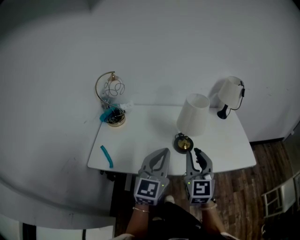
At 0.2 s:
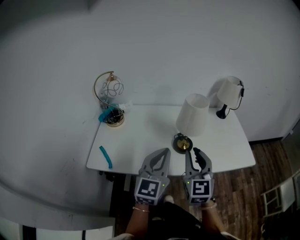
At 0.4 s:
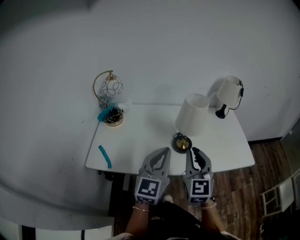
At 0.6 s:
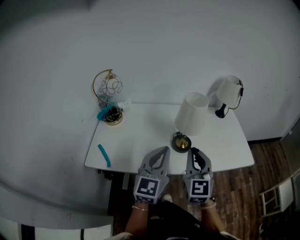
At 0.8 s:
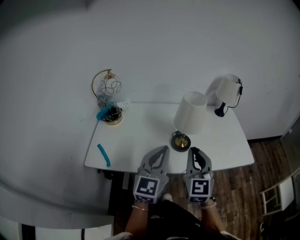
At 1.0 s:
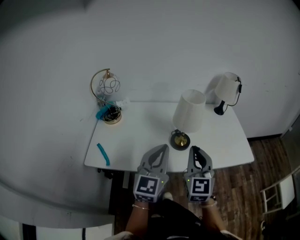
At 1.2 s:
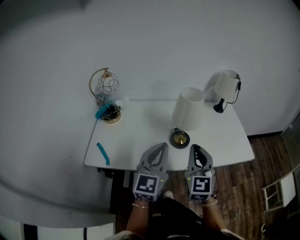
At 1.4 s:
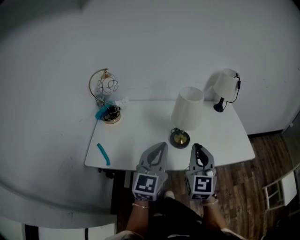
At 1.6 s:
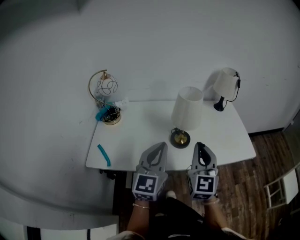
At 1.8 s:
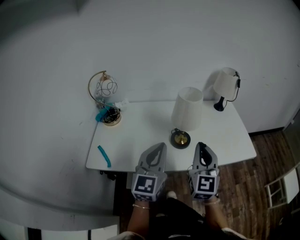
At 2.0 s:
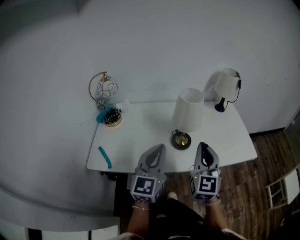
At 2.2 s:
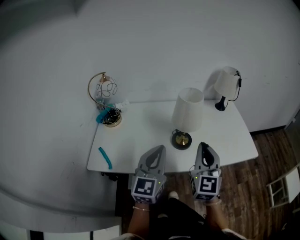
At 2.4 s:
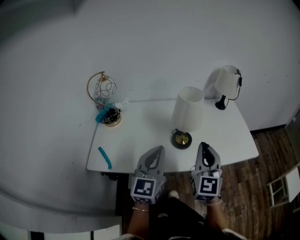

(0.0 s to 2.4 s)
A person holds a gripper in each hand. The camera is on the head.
0.0 s - 1.2 s: The right gripper closes.
1.2 s - 2.4 s: The grippers make only small movements.

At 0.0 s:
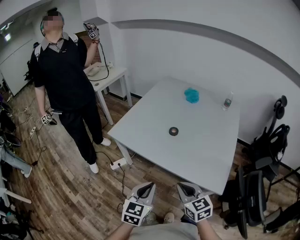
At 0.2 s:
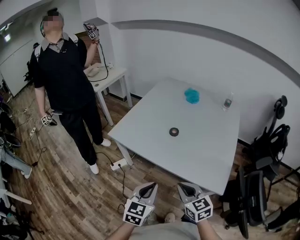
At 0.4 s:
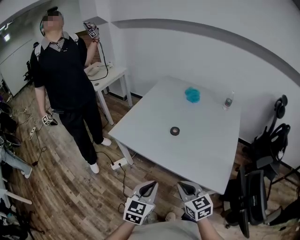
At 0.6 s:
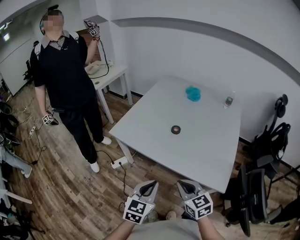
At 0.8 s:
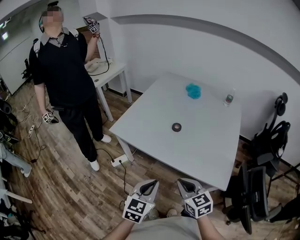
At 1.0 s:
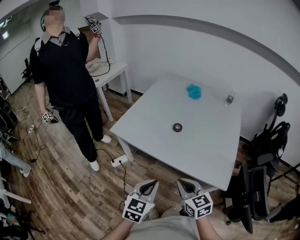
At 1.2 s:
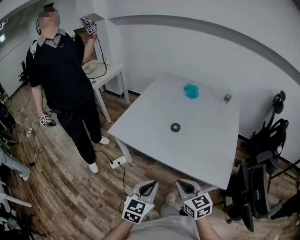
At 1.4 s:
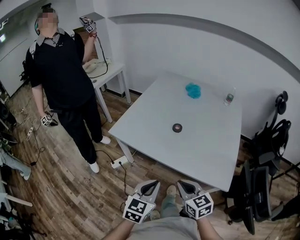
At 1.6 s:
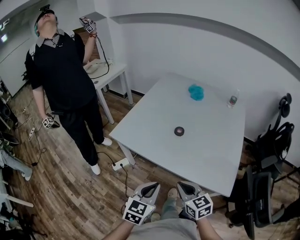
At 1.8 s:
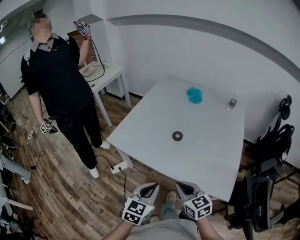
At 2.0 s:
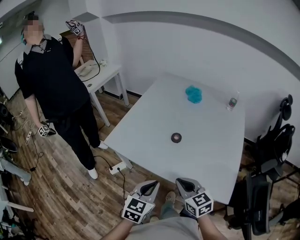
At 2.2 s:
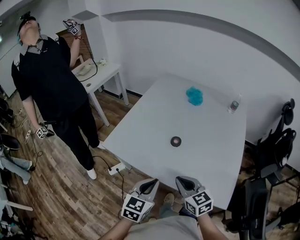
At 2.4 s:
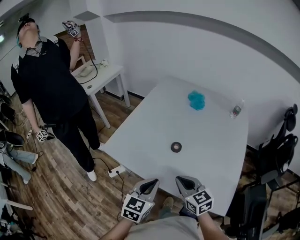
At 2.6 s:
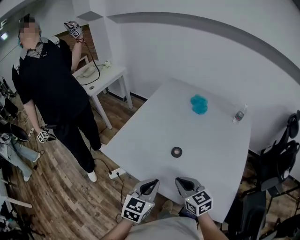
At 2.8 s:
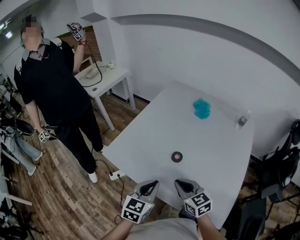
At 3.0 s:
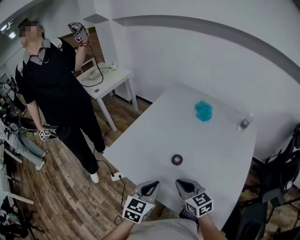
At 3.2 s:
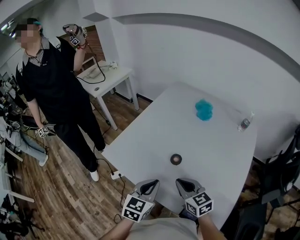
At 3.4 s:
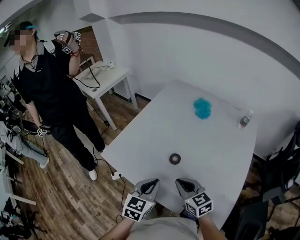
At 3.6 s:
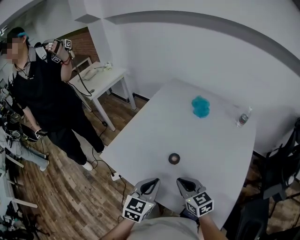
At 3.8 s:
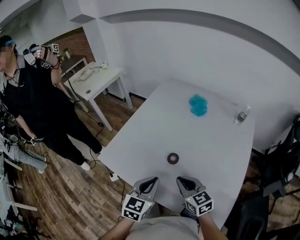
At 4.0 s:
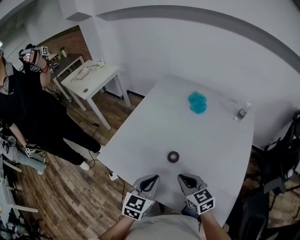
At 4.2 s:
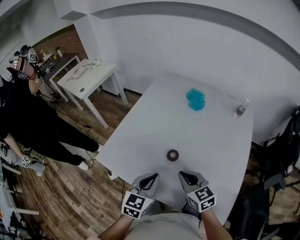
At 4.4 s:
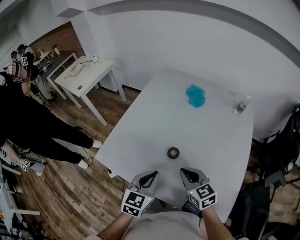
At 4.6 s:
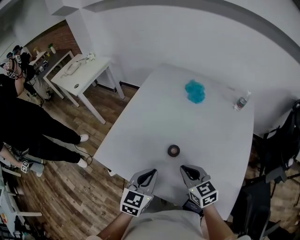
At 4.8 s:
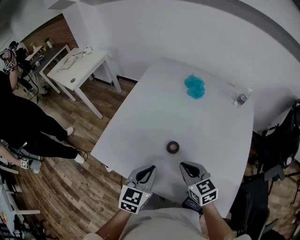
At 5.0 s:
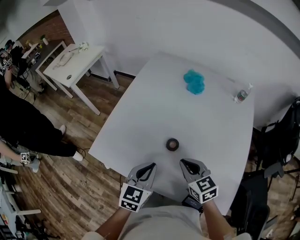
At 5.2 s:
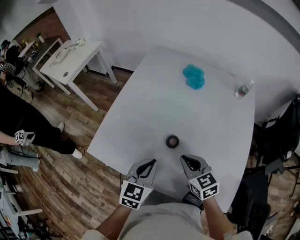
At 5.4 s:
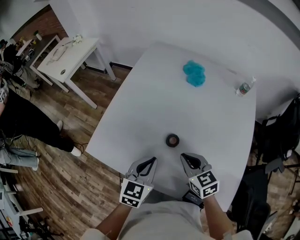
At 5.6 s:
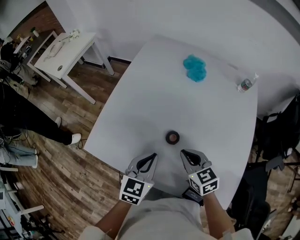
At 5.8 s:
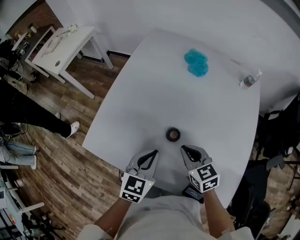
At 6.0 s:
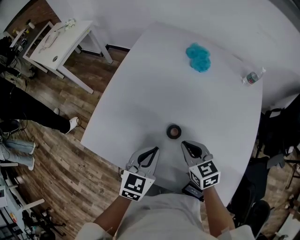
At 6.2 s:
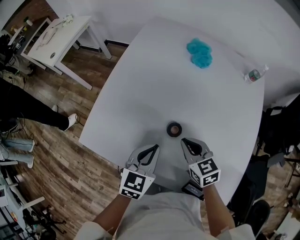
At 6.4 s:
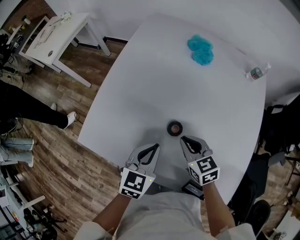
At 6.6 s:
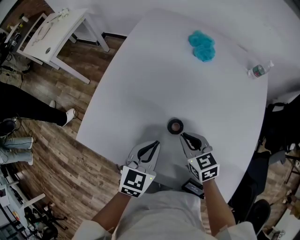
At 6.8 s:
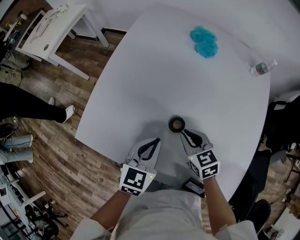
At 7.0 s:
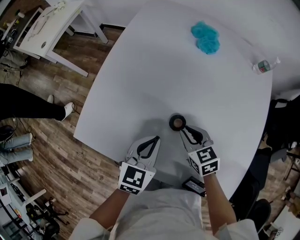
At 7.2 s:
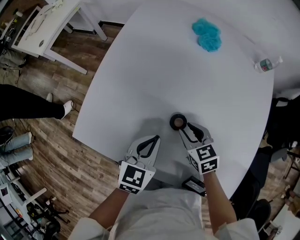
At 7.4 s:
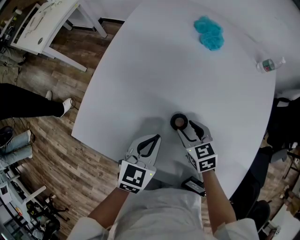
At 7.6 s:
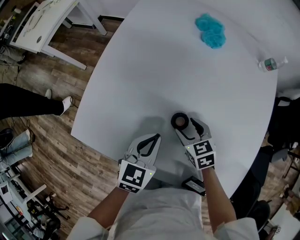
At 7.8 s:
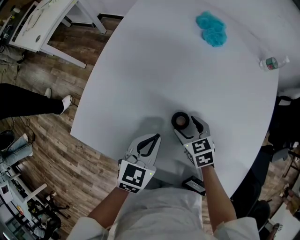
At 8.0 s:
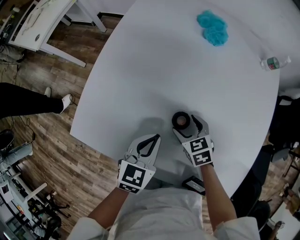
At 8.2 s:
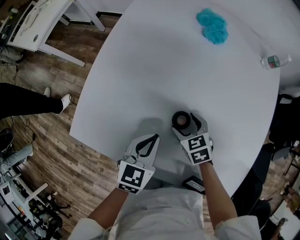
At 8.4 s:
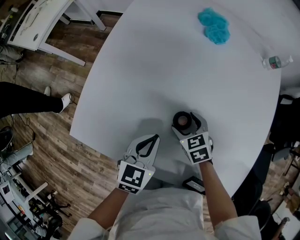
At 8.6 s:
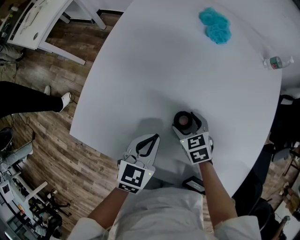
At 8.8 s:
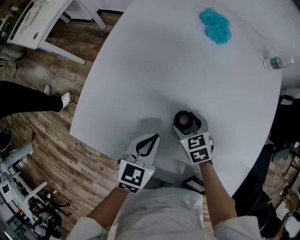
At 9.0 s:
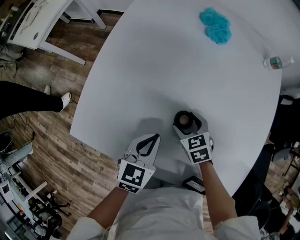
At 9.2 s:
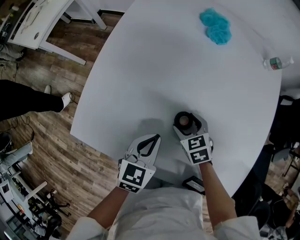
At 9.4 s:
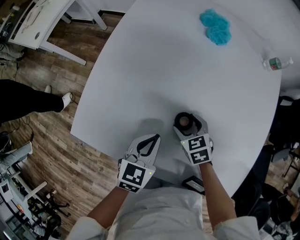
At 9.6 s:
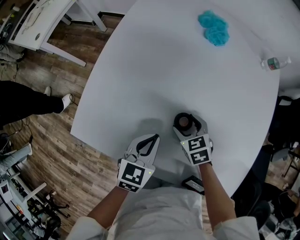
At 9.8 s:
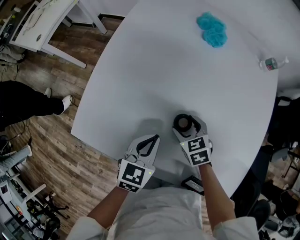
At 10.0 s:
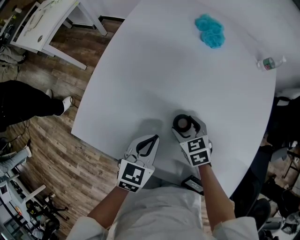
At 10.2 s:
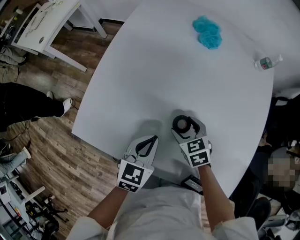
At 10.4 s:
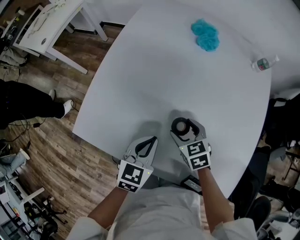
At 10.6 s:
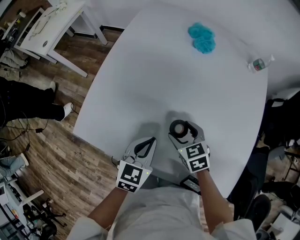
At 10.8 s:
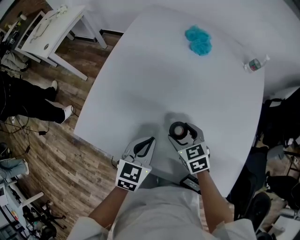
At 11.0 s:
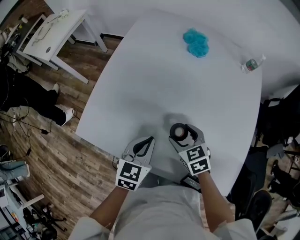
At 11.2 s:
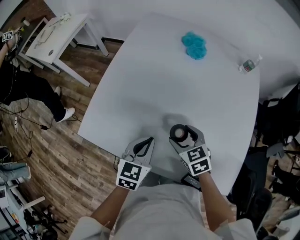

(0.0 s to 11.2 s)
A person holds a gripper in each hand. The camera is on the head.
0.0 s - 1.6 s: The right gripper ends up some 5 cm from where it was.
1.6 s - 3.2 s: Both grippers move forward, about 20 cm.
3.2 s - 4.8 s: Both grippers travel together forward, roughly 5 cm.
4.8 s - 6.4 s: The right gripper travels downward and forward by roughly 10 cm. The left gripper heads forward and downward, covering approximately 10 cm.
6.4 s - 8.0 s: The right gripper goes about 10 cm downward, and opens up; the left gripper heads downward, covering about 5 cm.
8.0 s - 9.6 s: The grippers move only a little.
9.6 s - 11.2 s: The left gripper is displaced upward and backward by approximately 10 cm, while the right gripper moves upward and backward, some 15 cm.

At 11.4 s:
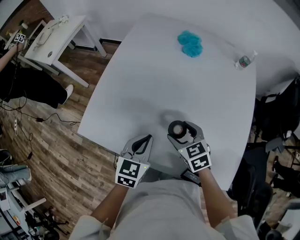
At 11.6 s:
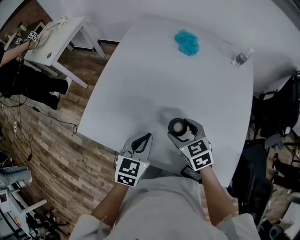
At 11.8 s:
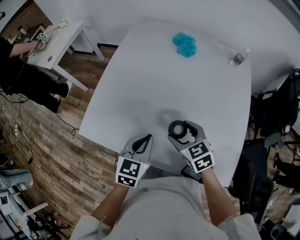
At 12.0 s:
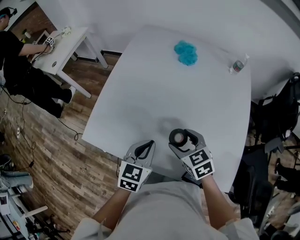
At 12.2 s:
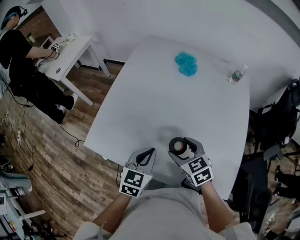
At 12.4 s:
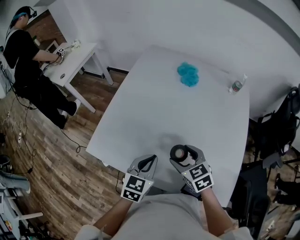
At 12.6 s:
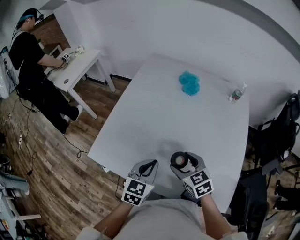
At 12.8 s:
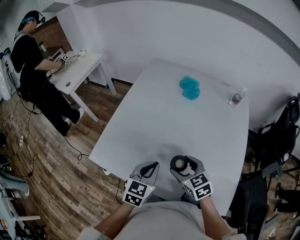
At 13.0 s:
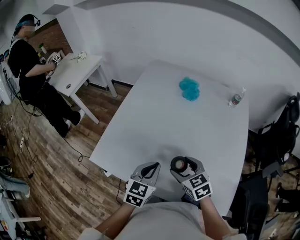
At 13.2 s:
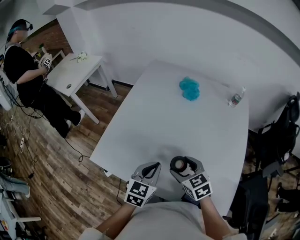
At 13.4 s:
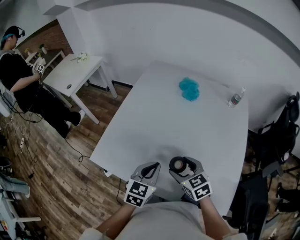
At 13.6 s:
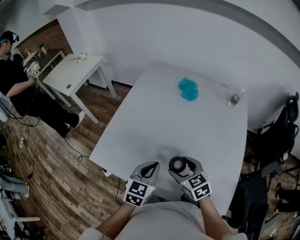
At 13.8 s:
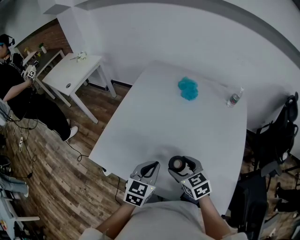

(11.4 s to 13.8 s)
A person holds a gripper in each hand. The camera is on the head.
11.4 s - 12.6 s: The right gripper is displaced upward by roughly 5 cm.
12.6 s - 13.8 s: The grippers move only a little.

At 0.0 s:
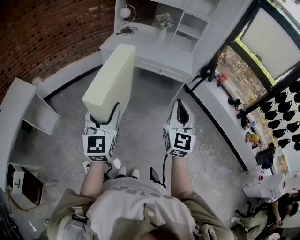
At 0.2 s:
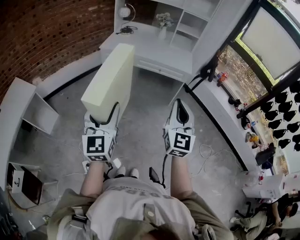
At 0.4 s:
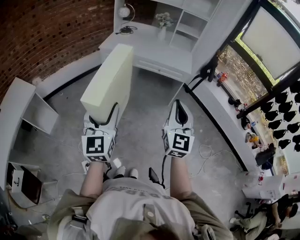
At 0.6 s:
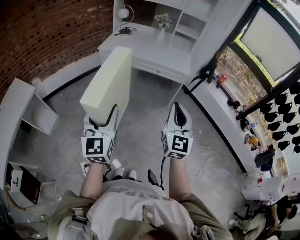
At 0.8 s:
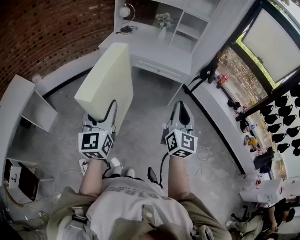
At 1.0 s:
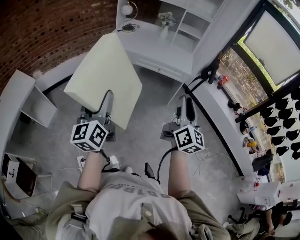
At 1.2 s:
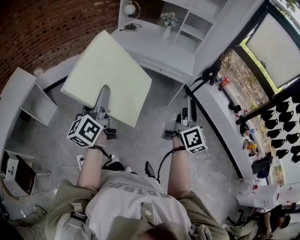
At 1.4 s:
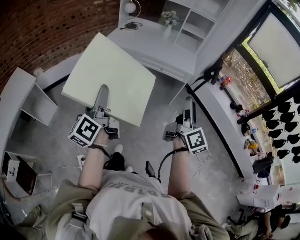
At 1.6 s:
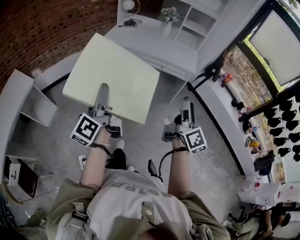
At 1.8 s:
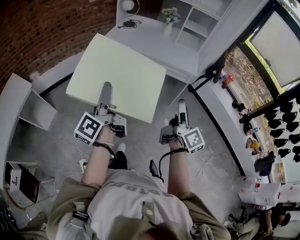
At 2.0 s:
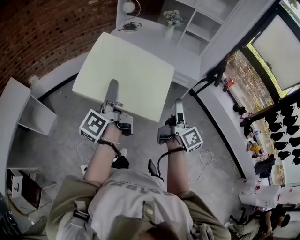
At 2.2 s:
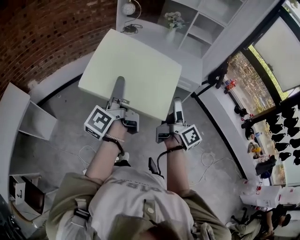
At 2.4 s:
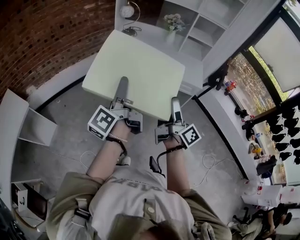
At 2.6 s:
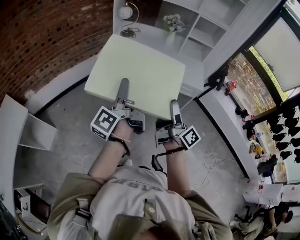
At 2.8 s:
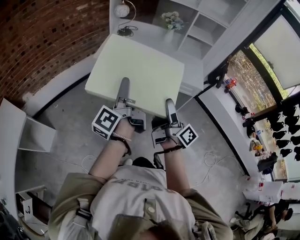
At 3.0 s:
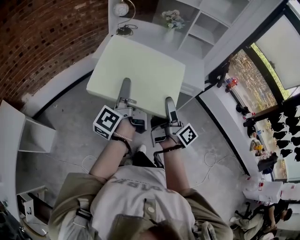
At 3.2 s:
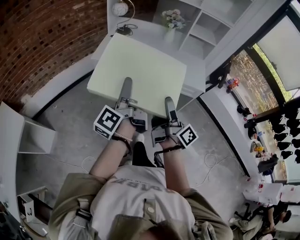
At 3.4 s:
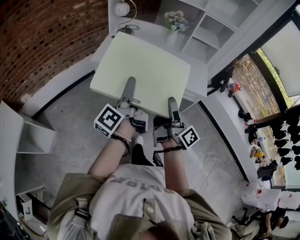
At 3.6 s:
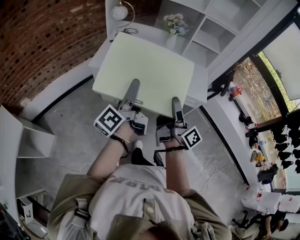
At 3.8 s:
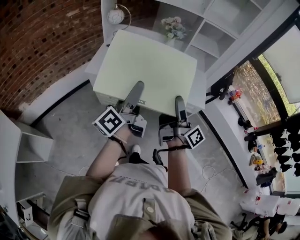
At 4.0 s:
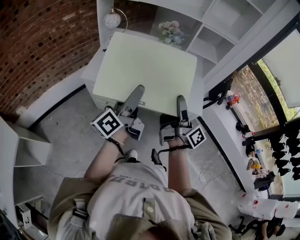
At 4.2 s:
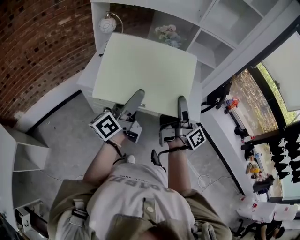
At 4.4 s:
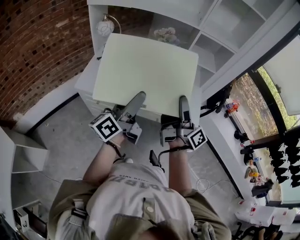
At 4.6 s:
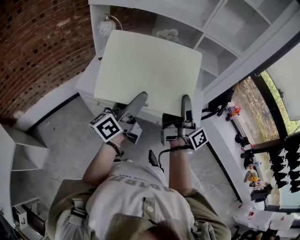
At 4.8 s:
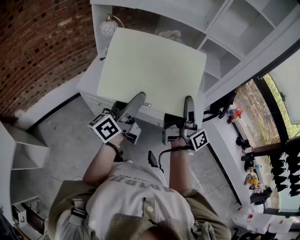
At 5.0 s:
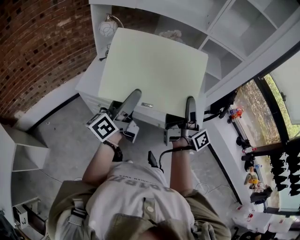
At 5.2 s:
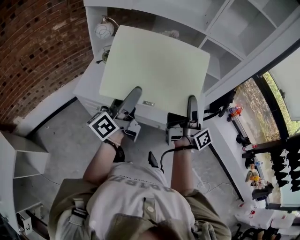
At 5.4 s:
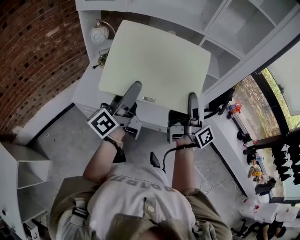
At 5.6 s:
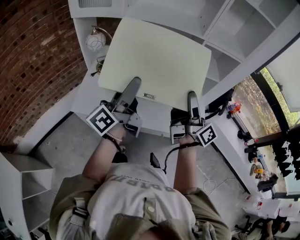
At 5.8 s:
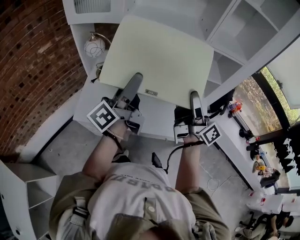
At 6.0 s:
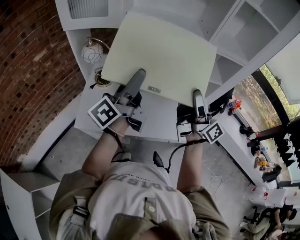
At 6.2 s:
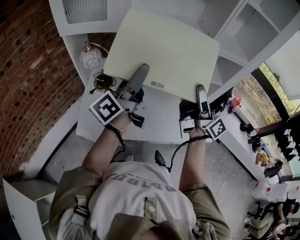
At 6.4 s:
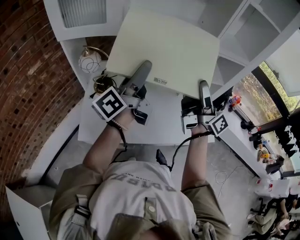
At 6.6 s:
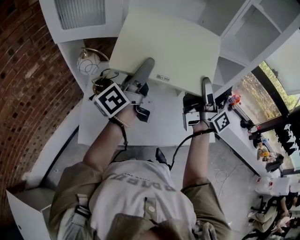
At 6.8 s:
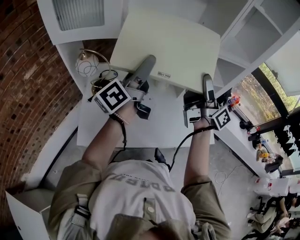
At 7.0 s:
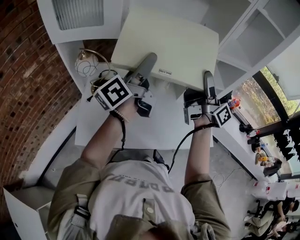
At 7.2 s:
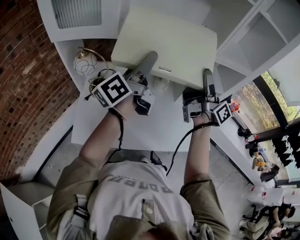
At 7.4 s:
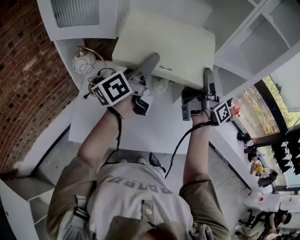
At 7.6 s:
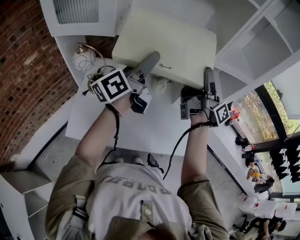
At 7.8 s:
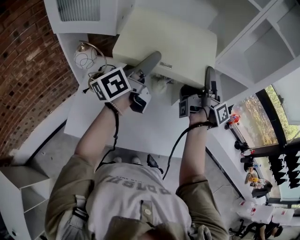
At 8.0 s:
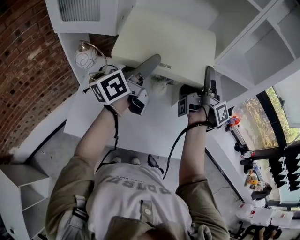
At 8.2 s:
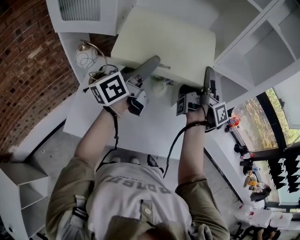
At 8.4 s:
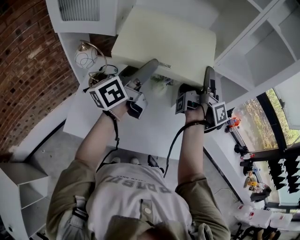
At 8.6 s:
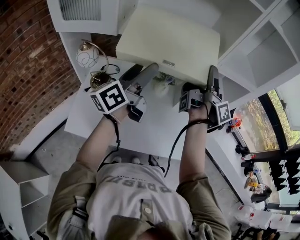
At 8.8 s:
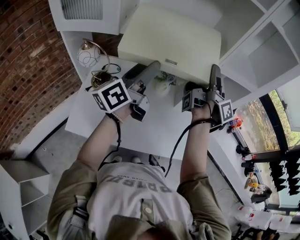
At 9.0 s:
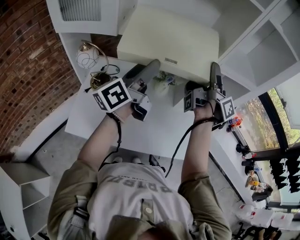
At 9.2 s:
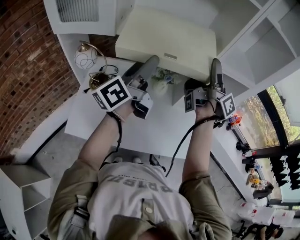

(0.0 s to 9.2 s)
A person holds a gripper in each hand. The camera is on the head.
0.0 s - 1.6 s: The right gripper heads to the right and forward, covering roughly 10 cm, twists about 60 degrees clockwise, seen from behind, and opens its fingers. Meanwhile the left gripper heads forward, covering about 10 cm, and rotates around the line of its fingers by about 60 degrees, counterclockwise from behind.
1.6 s - 3.0 s: The left gripper shifts about 30 cm forward, and changes its angle by some 20 degrees, while the right gripper moves forward and to the left, approximately 30 cm, and rotates approximately 30 degrees.
3.0 s - 4.6 s: Both grippers travel together forward and to the right, about 35 cm. The left gripper changes its angle by approximately 30 degrees.
4.6 s - 6.2 s: Both grippers move forward, some 20 cm.
6.2 s - 7.6 s: Both grippers move forward, roughly 15 cm.
7.6 s - 9.2 s: There are only small adjustments of the grippers.
